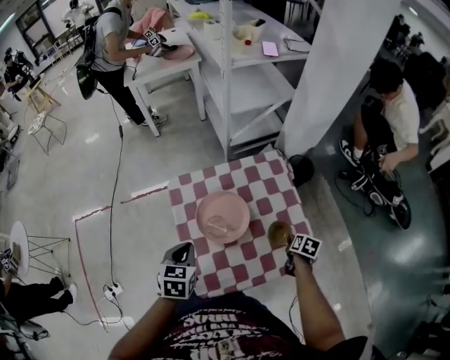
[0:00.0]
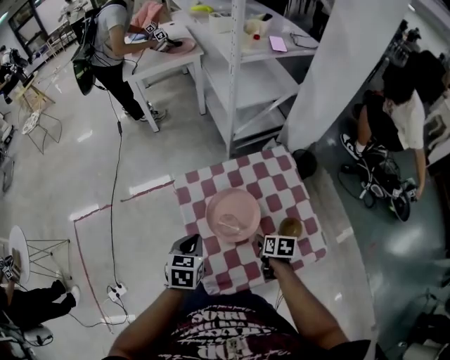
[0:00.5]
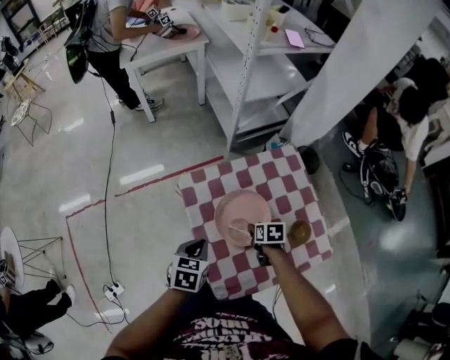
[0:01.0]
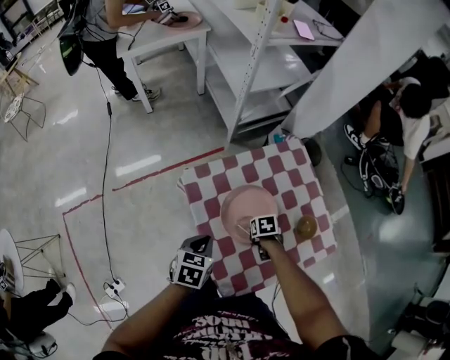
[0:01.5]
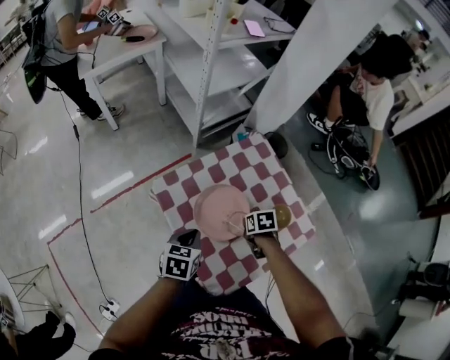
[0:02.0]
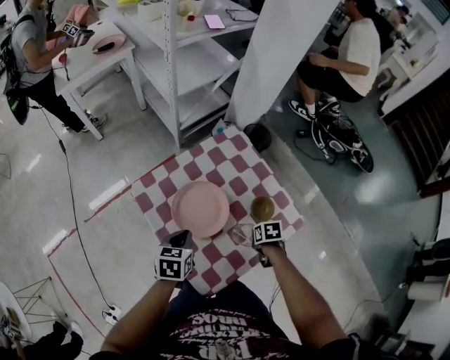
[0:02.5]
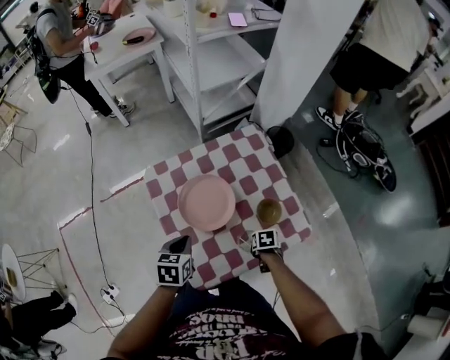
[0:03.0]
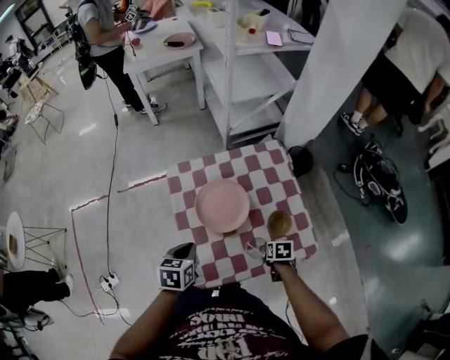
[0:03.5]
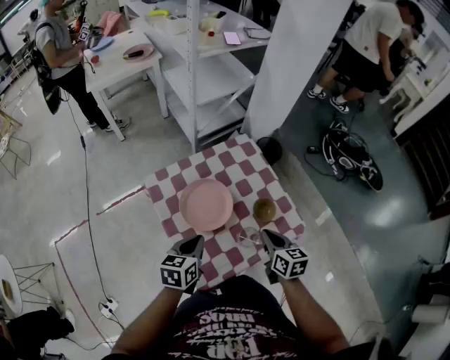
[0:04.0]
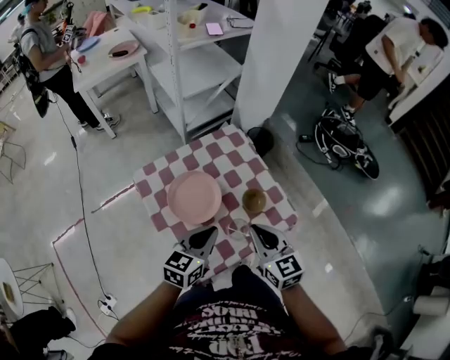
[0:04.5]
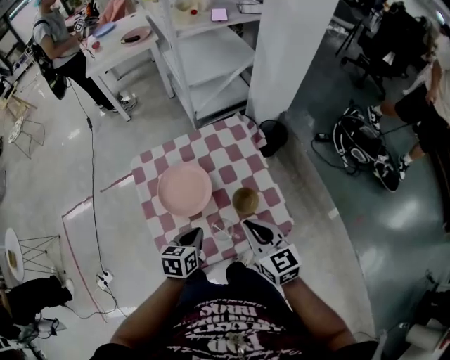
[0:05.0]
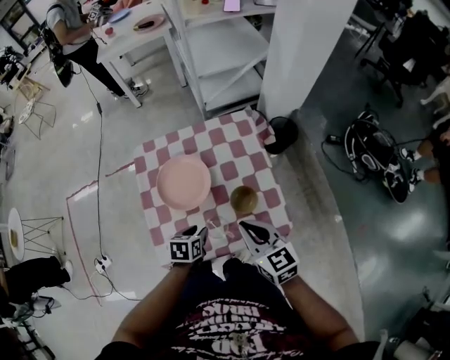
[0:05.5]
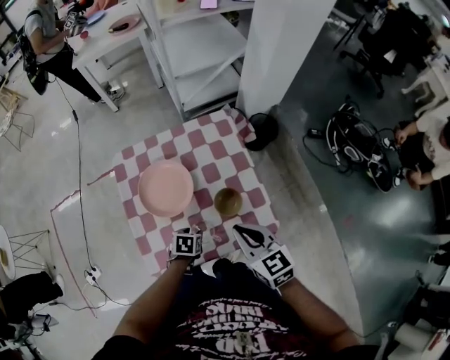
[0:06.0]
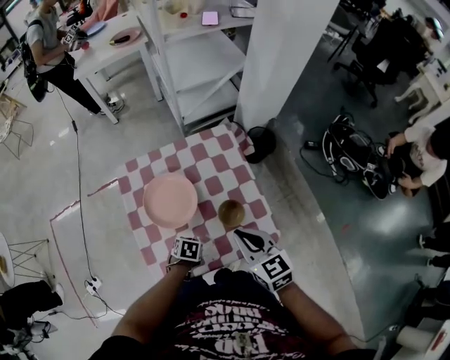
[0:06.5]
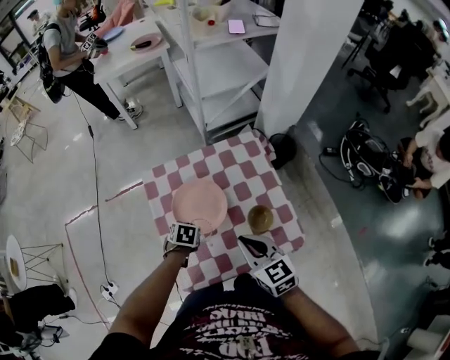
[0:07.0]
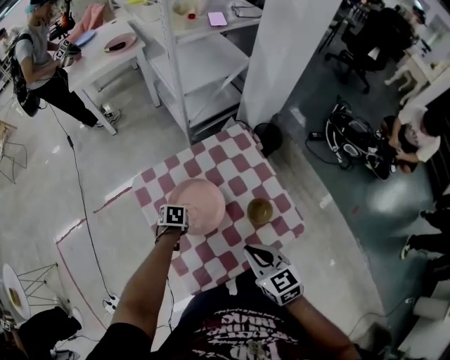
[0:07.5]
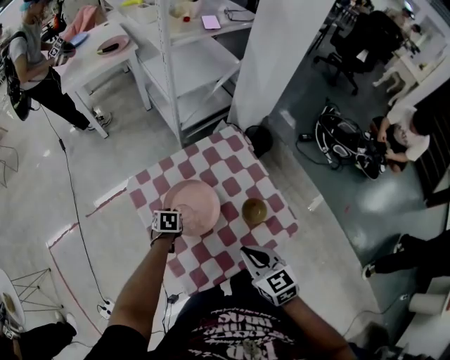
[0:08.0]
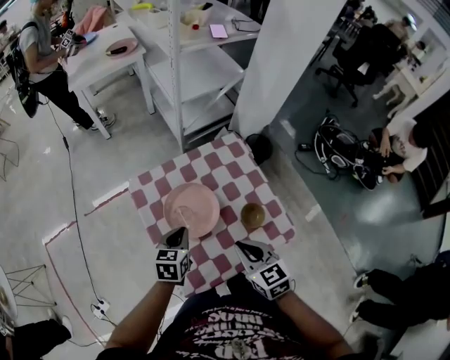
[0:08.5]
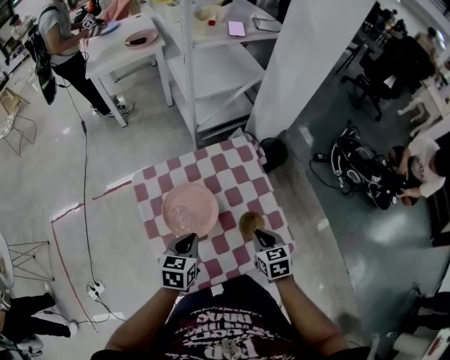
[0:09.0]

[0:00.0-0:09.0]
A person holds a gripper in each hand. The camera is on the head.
0:00.0 to 0:02.0: The right gripper travels downward and back again, some 10 cm each way, changes its angle by about 20 degrees, and closes. Meanwhile the left gripper moves about 10 cm, and rotates some 30 degrees.
0:02.0 to 0:04.5: The right gripper travels upward by some 25 cm, tips its fingers upward by about 50 degrees, and opens, then closes once more; the left gripper moves some 25 cm, and rotates some 30 degrees.
0:04.5 to 0:07.0: The right gripper turns by roughly 20 degrees, while the left gripper travels downward by roughly 20 cm, tilts its fingers about 50 degrees downward, and opens, then closes again.
0:07.0 to 0:09.0: The right gripper travels downward and to the right by about 15 cm, and swivels roughly 30 degrees, while the left gripper is displaced upward and to the right by roughly 15 cm, and rotates approximately 30 degrees.

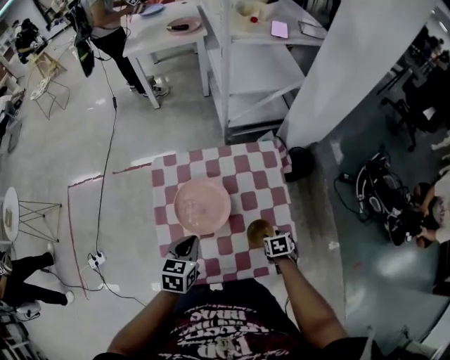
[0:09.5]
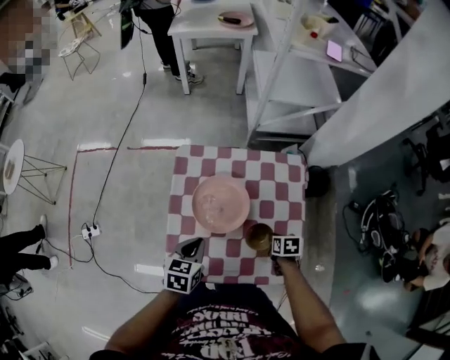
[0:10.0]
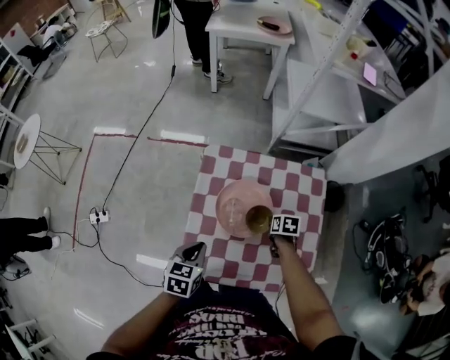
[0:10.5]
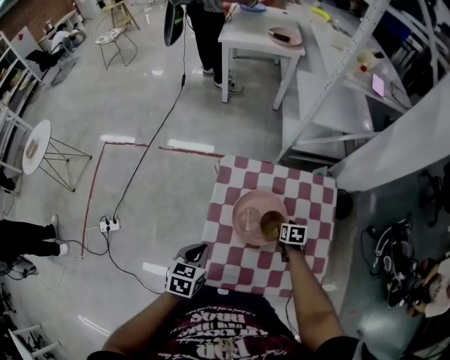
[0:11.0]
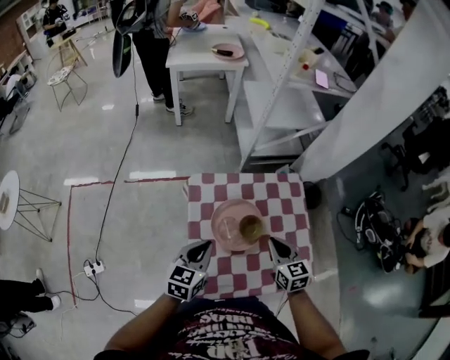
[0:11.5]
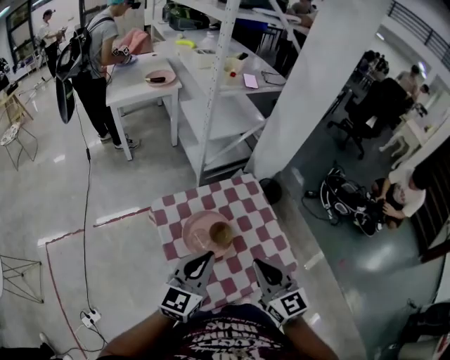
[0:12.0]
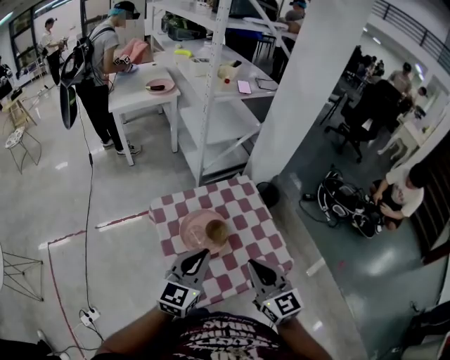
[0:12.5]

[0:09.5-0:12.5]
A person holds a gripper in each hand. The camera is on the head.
0:09.5 to 0:11.0: The left gripper ends up roughly 15 cm from where it was. The right gripper ends up some 25 cm from where it was, and closes, then opens again.
0:11.0 to 0:12.5: The left gripper goes about 25 cm upward and to the right, and angles its fingers upward, by about 40 degrees; the right gripper moves upward and backward, about 50 cm, tips its fingers upward by about 50 degrees, and closes.

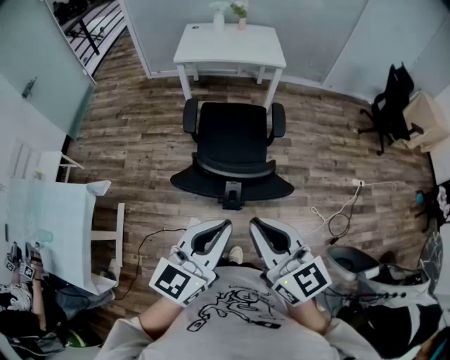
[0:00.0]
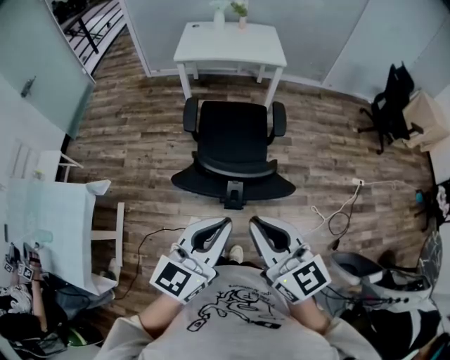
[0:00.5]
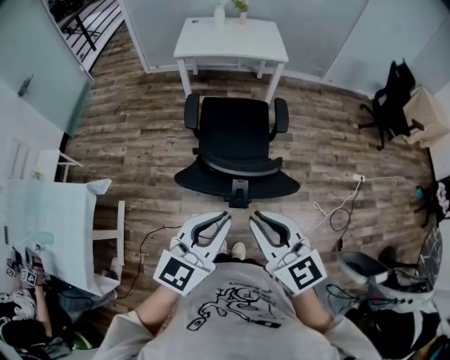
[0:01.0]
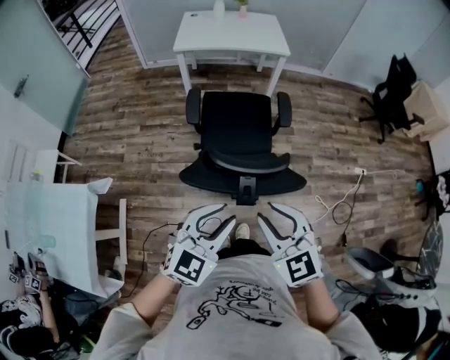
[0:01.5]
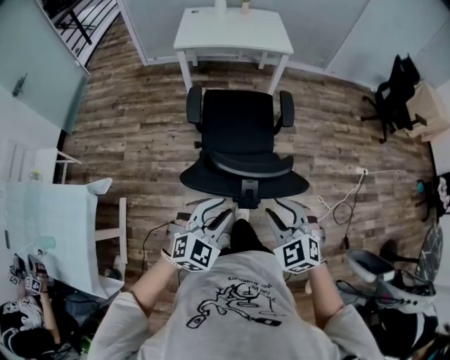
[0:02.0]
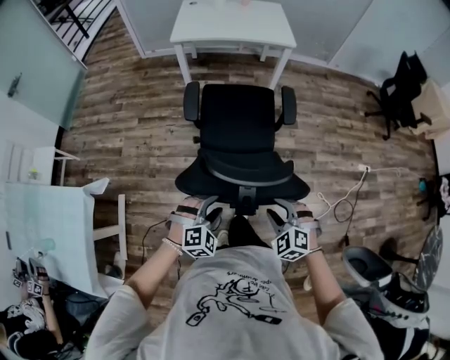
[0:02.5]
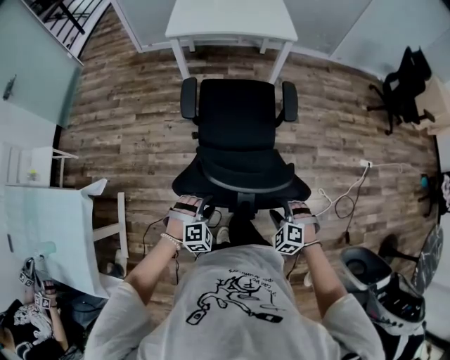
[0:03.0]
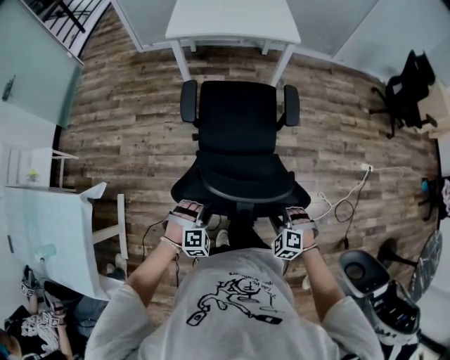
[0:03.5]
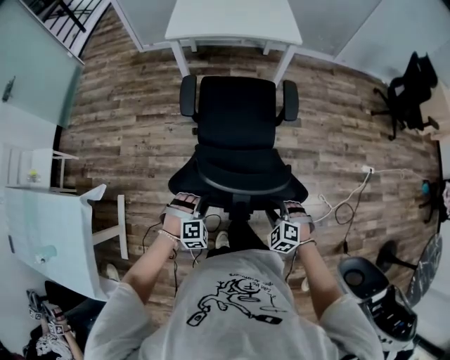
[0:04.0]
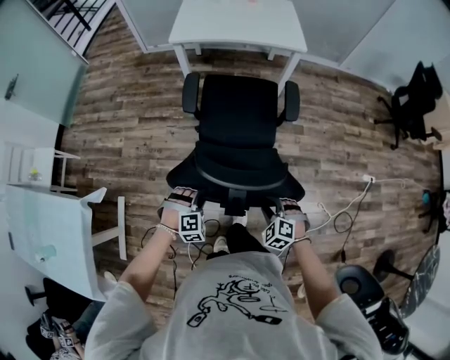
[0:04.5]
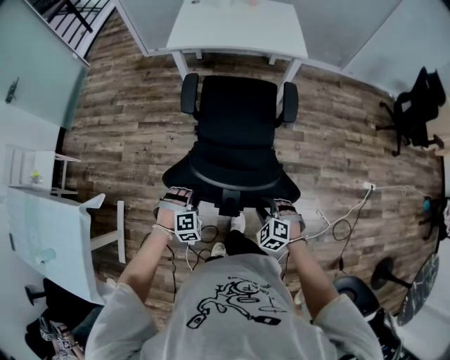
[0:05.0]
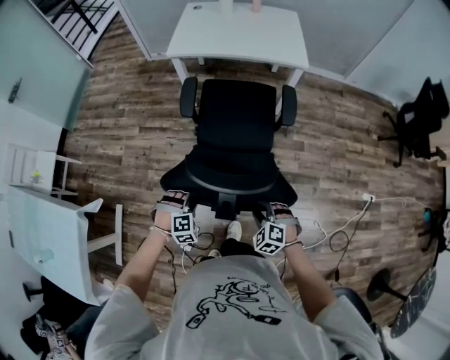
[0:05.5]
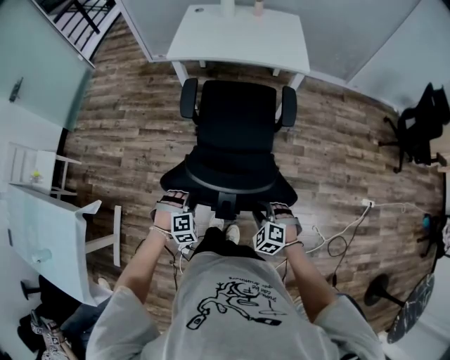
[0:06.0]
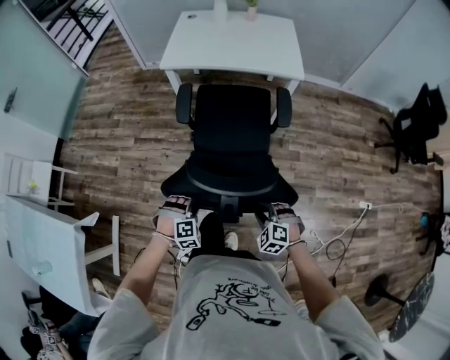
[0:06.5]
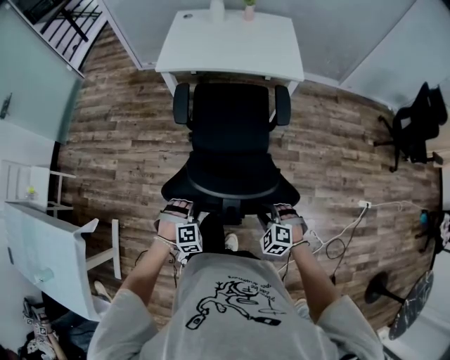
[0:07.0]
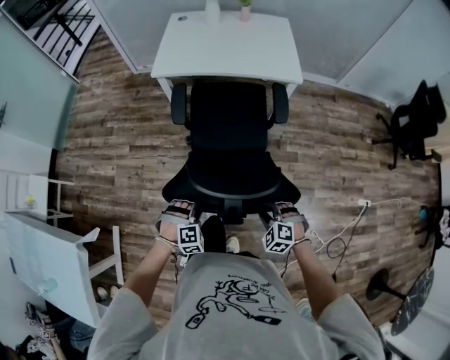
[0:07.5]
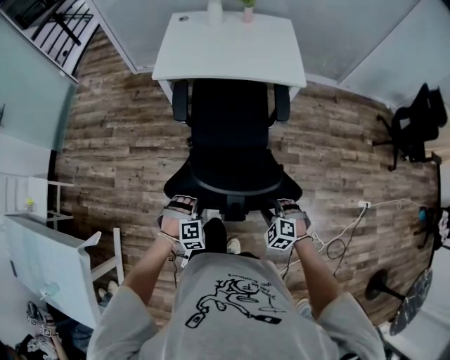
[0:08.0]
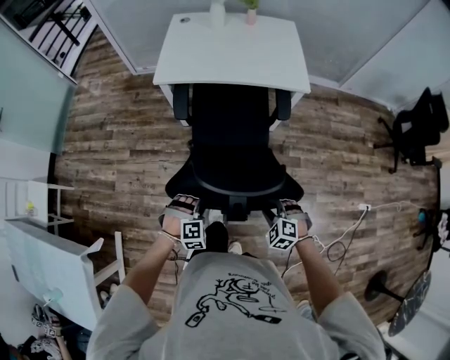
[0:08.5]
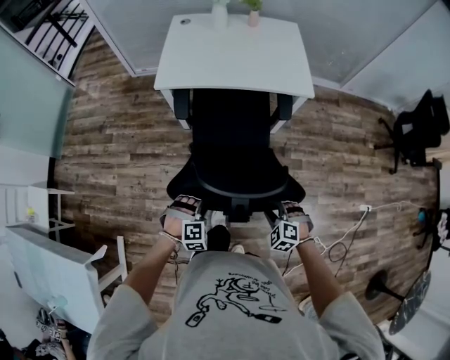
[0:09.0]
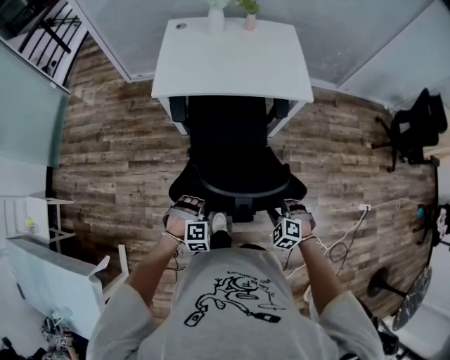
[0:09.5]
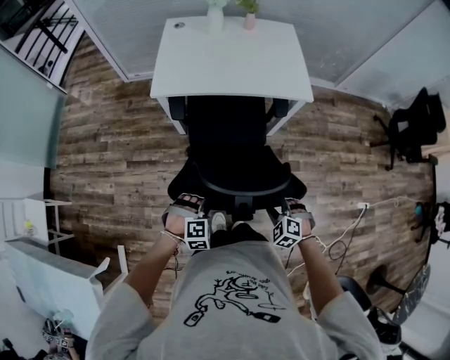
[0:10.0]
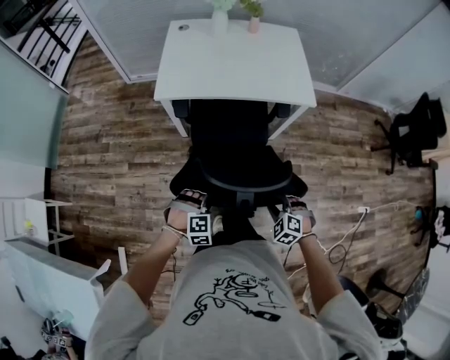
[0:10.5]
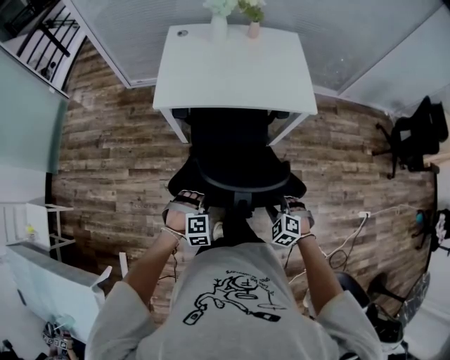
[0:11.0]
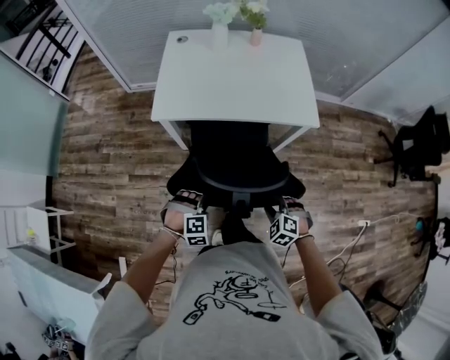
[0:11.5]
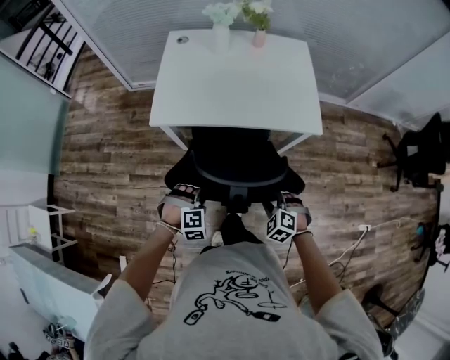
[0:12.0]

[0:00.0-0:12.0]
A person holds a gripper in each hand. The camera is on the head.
0:00.0 to 0:02.0: The left gripper is displaced downward by some 20 cm, turns by approximately 50 degrees, and opens up, while the right gripper heads downward and forward, covering some 15 cm, tips its fingers downward by some 30 degrees, and opens up.
0:02.0 to 0:04.0: Both grippers move downward and forward, about 25 cm. The left gripper swivels approximately 40 degrees. Meanwhile the right gripper swivels approximately 30 degrees.
0:04.0 to 0:06.0: The two grippers go roughly 15 cm forward.
0:06.0 to 0:08.0: The two grippers go approximately 10 cm forward.
0:08.0 to 0:10.0: The two grippers go approximately 10 cm forward.
0:10.0 to 0:12.0: The grippers both shift forward by some 20 cm.

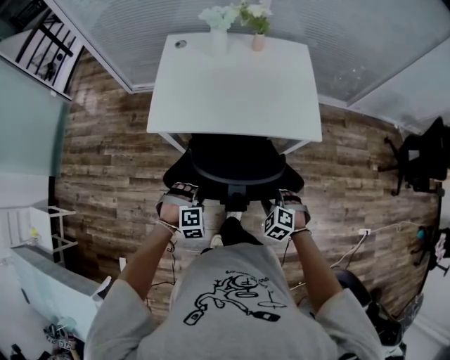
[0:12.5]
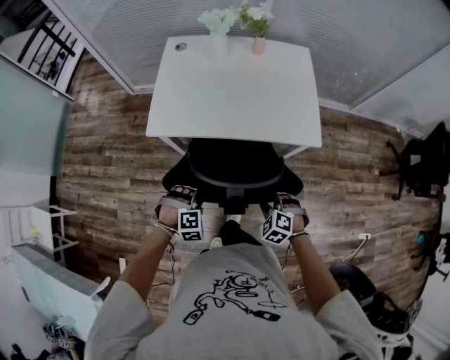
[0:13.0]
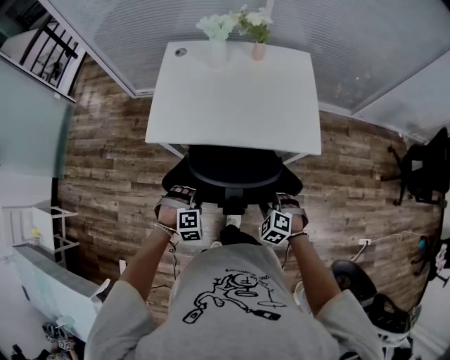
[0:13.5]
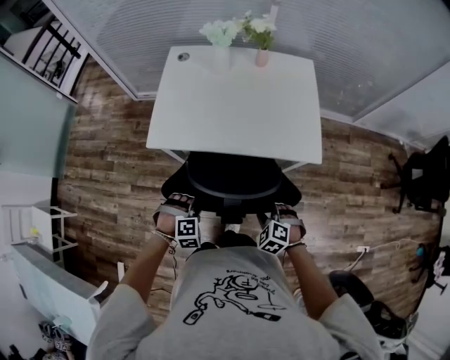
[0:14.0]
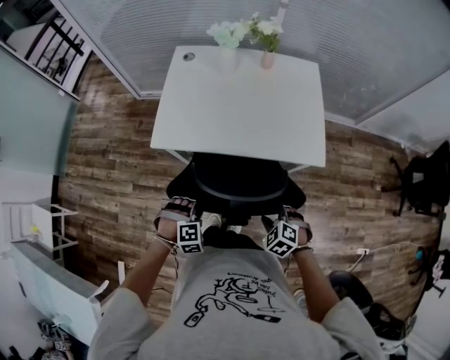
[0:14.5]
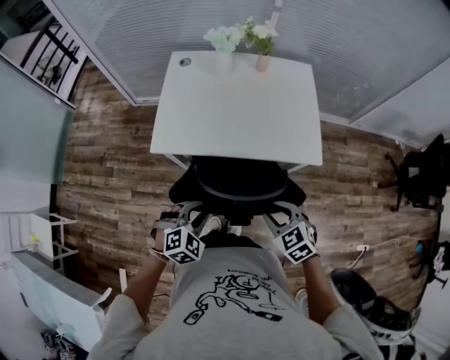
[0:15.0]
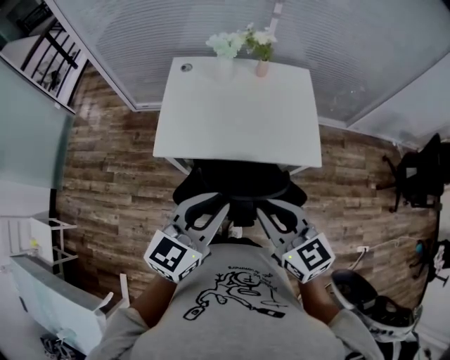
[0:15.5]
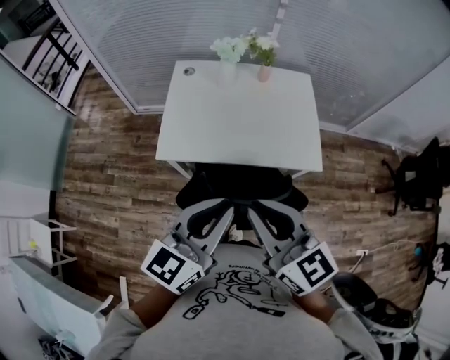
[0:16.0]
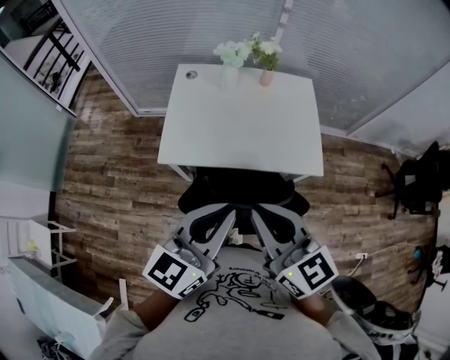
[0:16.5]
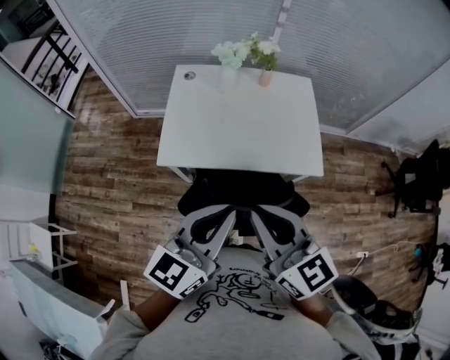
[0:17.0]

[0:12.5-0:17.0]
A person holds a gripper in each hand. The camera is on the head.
0:12.5 to 0:14.5: The grippers move only a little.
0:14.5 to 0:17.0: The grippers both shift upward by approximately 35 cm. The left gripper tips its fingers upward by about 60 degrees, and closes its fingers, while the right gripper tips its fingers upward by approximately 50 degrees, and closes its fingers.
